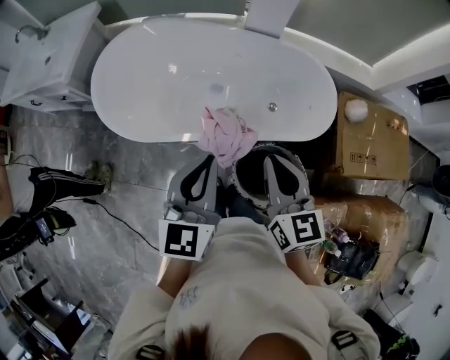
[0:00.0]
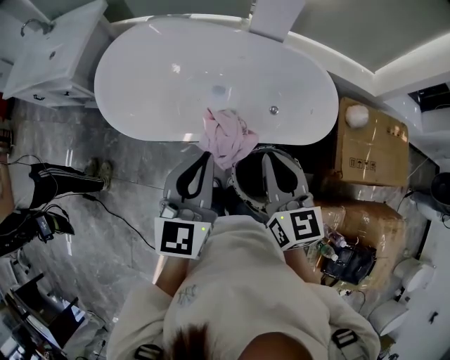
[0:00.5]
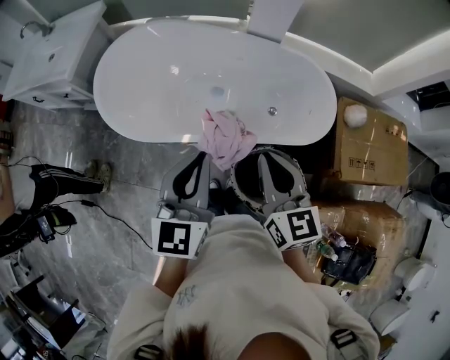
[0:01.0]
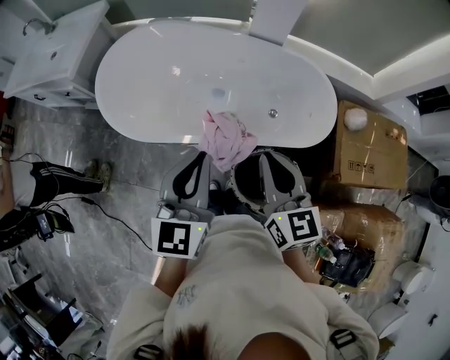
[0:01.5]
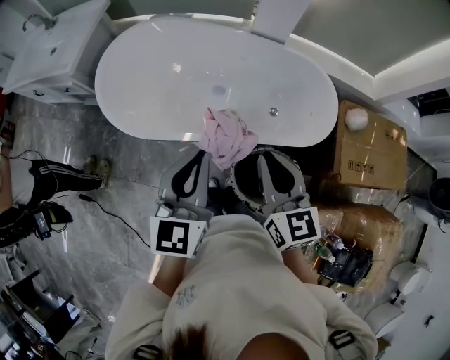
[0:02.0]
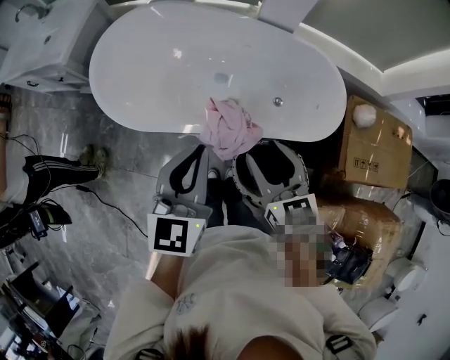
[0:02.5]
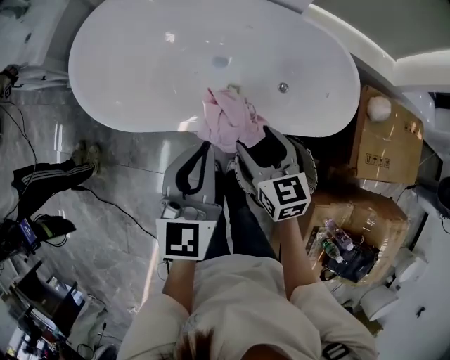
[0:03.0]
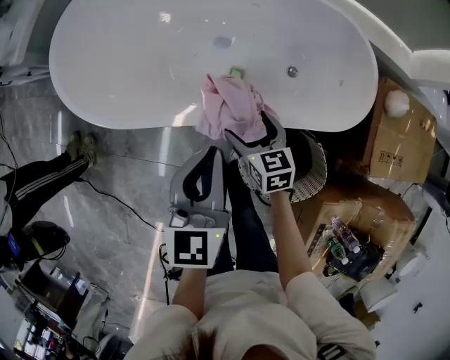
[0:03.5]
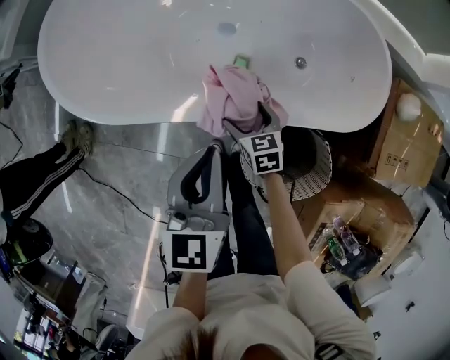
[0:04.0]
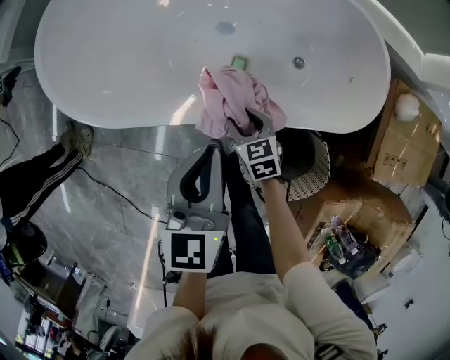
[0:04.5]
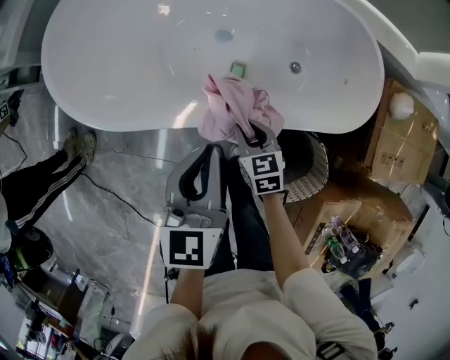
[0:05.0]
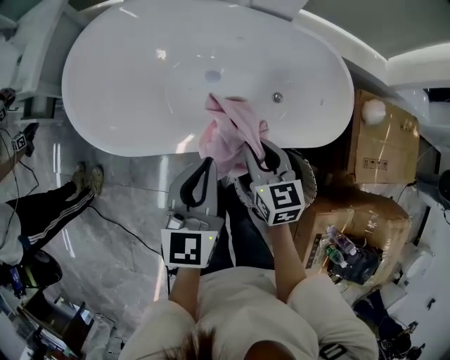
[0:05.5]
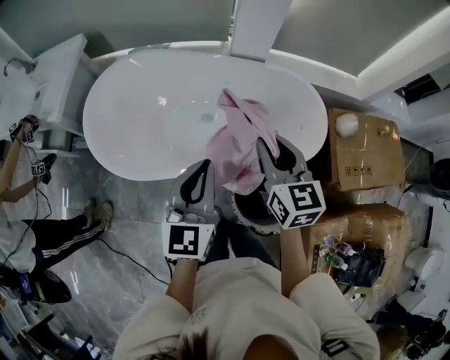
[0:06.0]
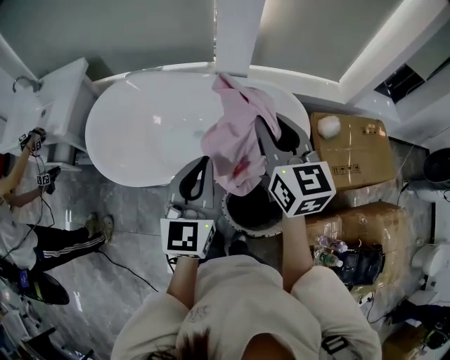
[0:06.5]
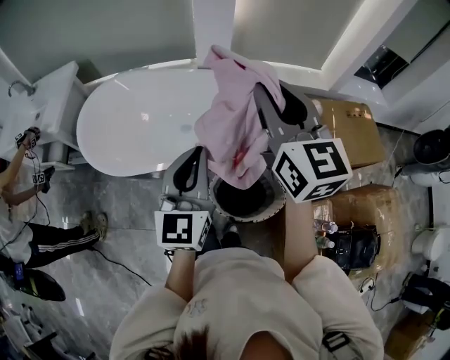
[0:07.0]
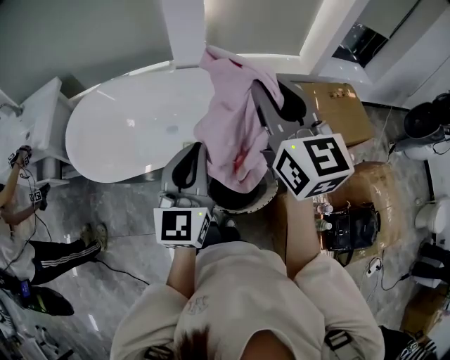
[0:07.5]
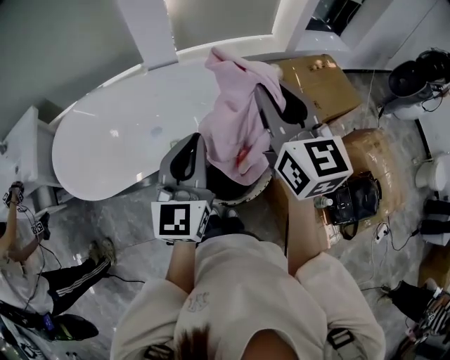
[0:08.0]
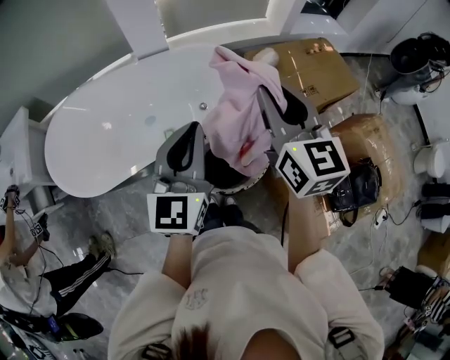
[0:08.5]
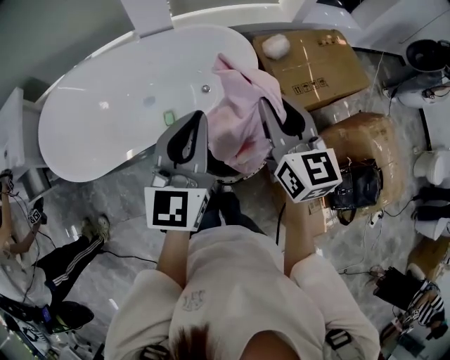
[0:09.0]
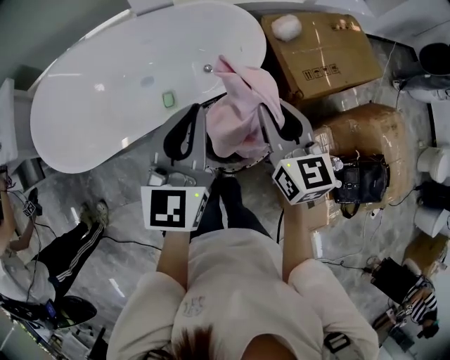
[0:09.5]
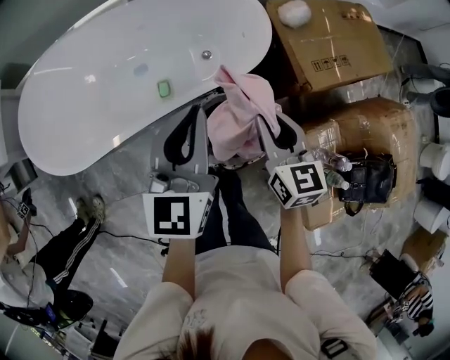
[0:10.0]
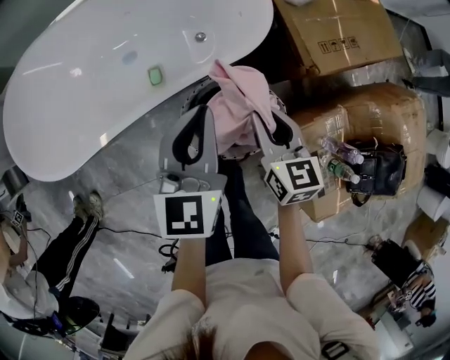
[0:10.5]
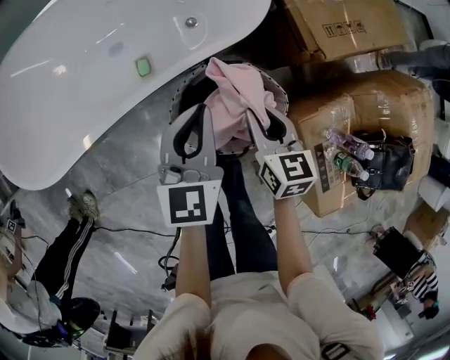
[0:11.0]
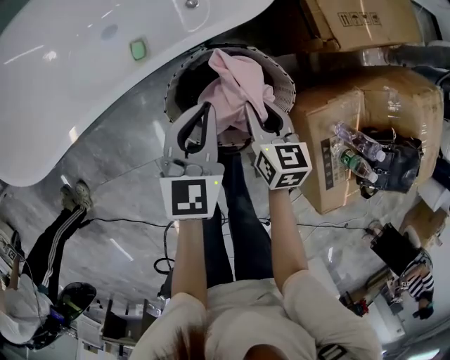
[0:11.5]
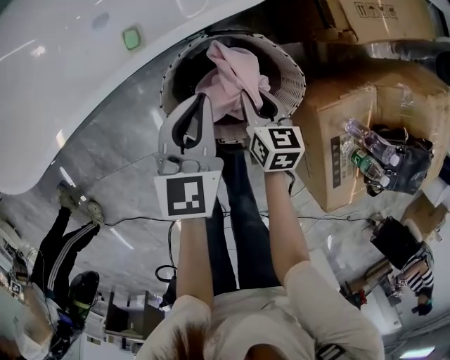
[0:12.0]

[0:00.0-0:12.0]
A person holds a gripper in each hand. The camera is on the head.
0:00.0 to 0:02.0: There are only small adjustments of the grippers.
0:02.0 to 0:04.0: The left gripper travels downward by approximately 25 cm, and turns by some 20 degrees, while the right gripper is displaced downward by roughly 50 cm, points its fingers roughly 40 degrees further downward, and opens up.
0:04.0 to 0:06.0: The left gripper travels upward by some 20 cm, and turns by approximately 20 degrees. The right gripper moves upward, some 50 cm, angles its fingers upward, by about 30 degrees, and closes.
0:06.0 to 0:08.0: The left gripper heads to the right, backward and upward, covering approximately 25 cm, and rotates some 20 degrees. Meanwhile the right gripper travels to the right, upward and backward by roughly 35 cm, and swivels roughly 20 degrees.
0:08.0 to 0:10.0: The left gripper goes approximately 15 cm downward and forward; the right gripper heads downward, covering about 35 cm, and swivels some 20 degrees.
0:10.0 to 0:12.0: The two grippers go roughly 35 cm downward. The right gripper changes its angle by roughly 20 degrees.

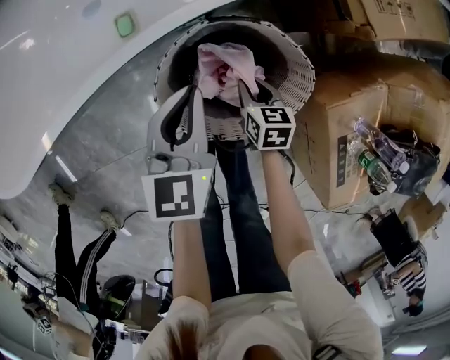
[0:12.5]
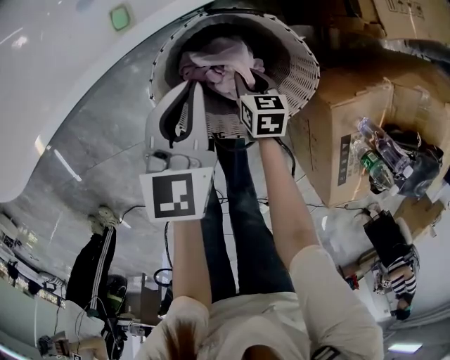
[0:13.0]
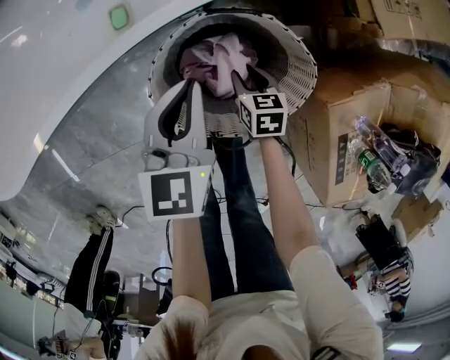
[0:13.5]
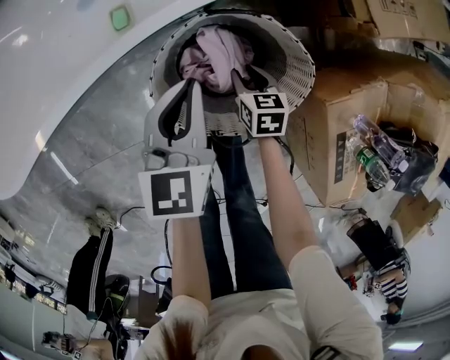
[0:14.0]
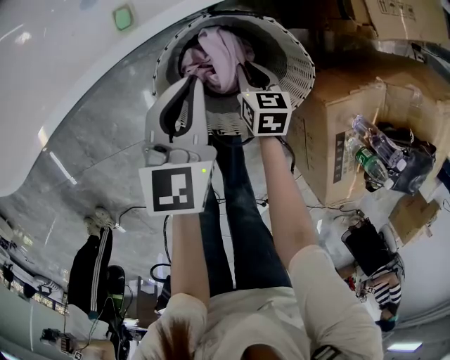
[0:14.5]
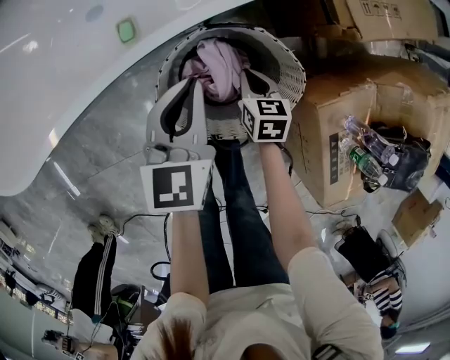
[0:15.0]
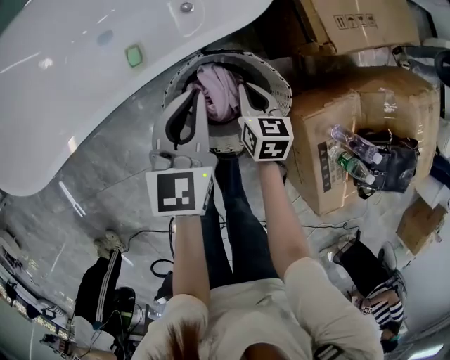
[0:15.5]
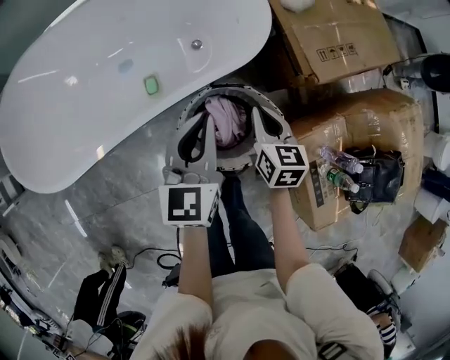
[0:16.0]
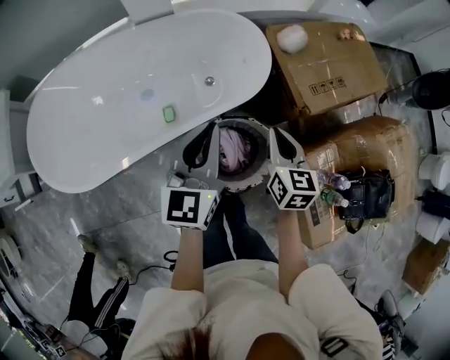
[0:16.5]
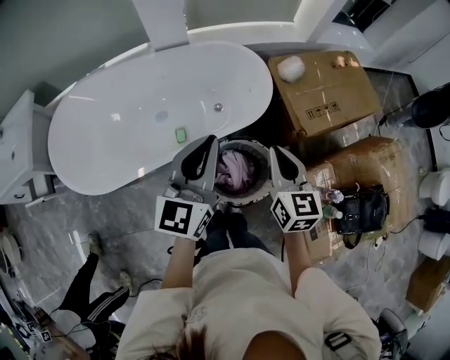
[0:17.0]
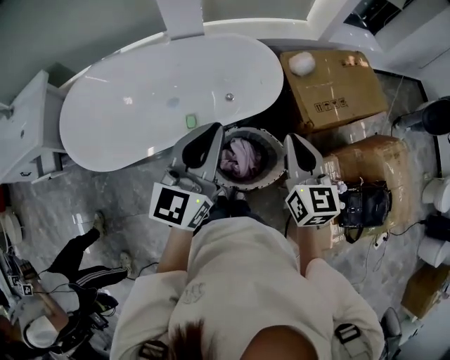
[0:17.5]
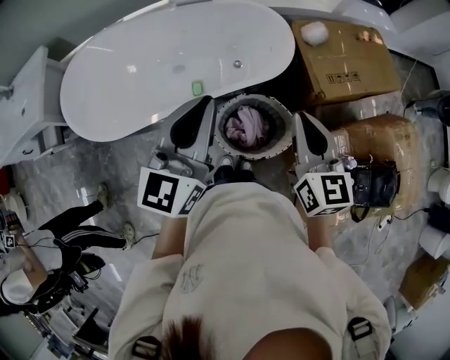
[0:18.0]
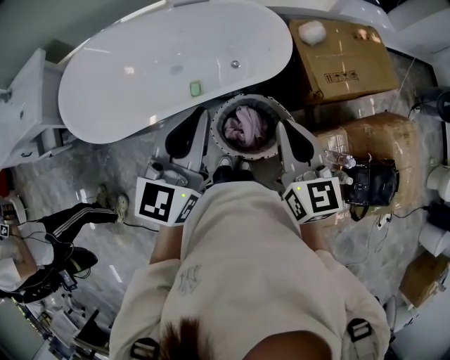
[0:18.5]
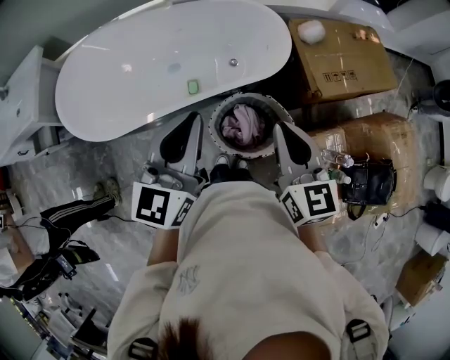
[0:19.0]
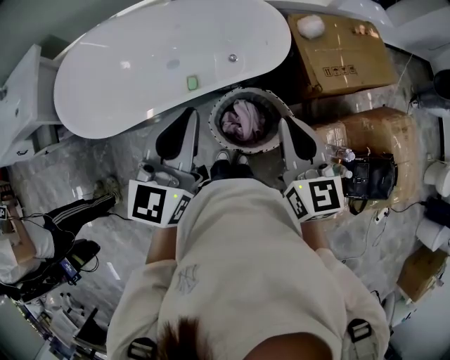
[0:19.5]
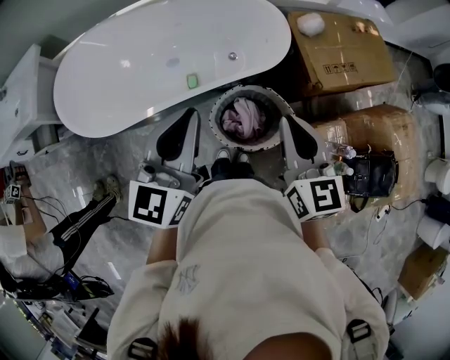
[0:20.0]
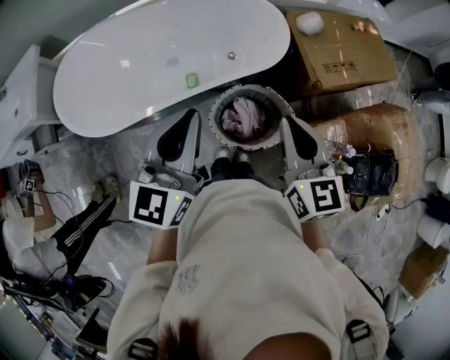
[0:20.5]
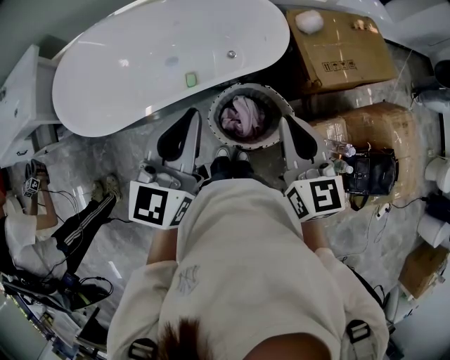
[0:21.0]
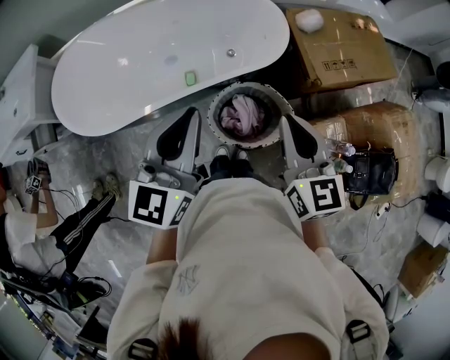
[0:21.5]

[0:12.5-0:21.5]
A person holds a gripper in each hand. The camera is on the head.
0:12.5 to 0:14.5: The grippers stay close to where they were, moving slightly.
0:14.5 to 0:17.0: The two grippers go roughly 50 cm upward. The right gripper angles its fingers upward, by approximately 30 degrees, while the left gripper rotates approximately 30 degrees.
0:17.0 to 0:19.5: The left gripper heads backward and to the left, covering some 15 cm. Meanwhile the right gripper travels backward and upward by about 10 cm.
0:19.5 to 0:21.5: The grippers move only a little.

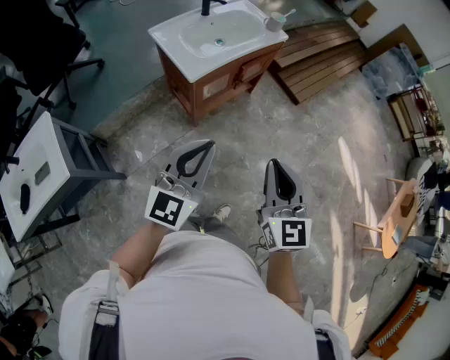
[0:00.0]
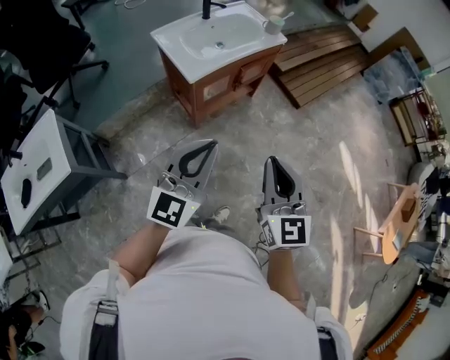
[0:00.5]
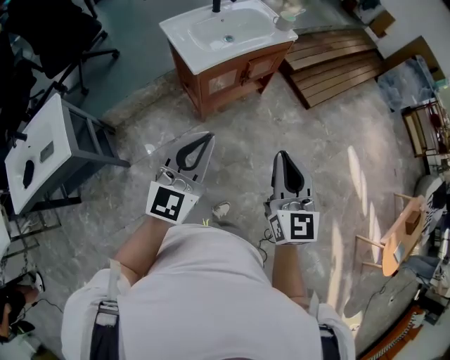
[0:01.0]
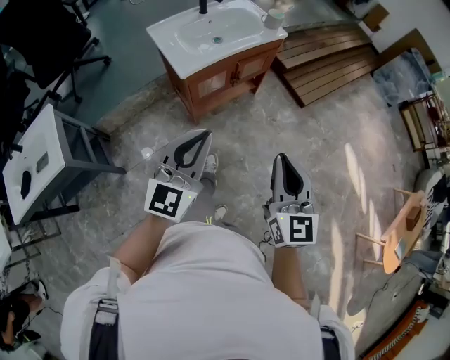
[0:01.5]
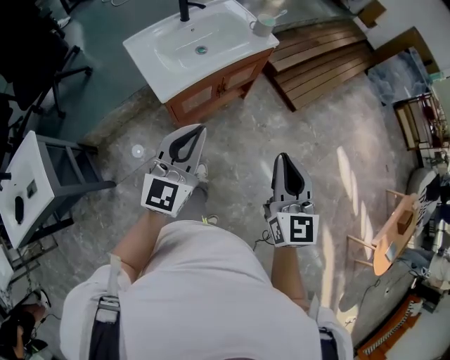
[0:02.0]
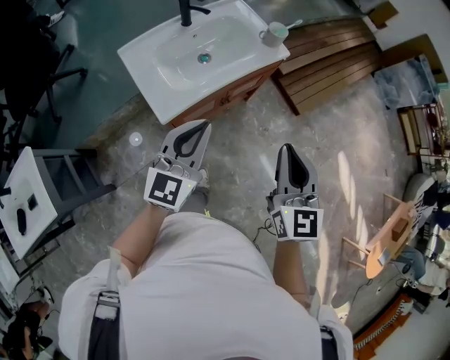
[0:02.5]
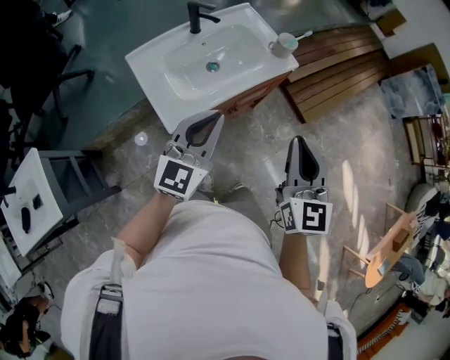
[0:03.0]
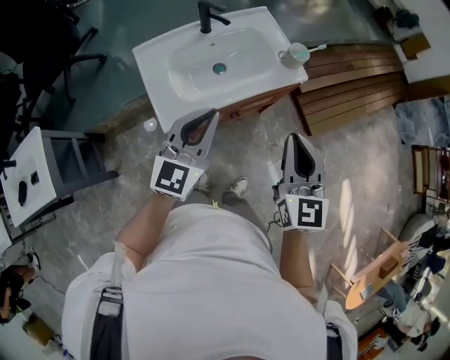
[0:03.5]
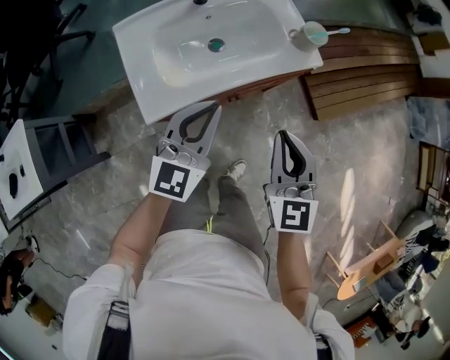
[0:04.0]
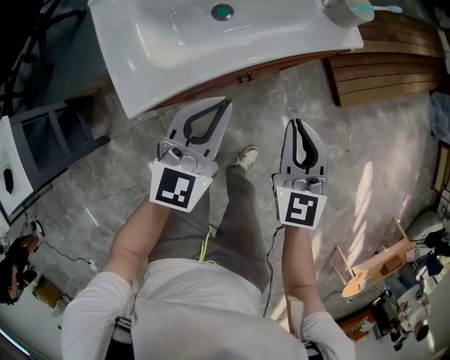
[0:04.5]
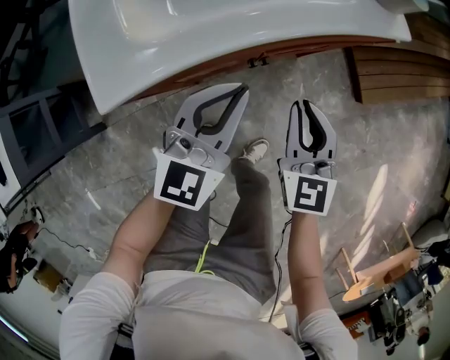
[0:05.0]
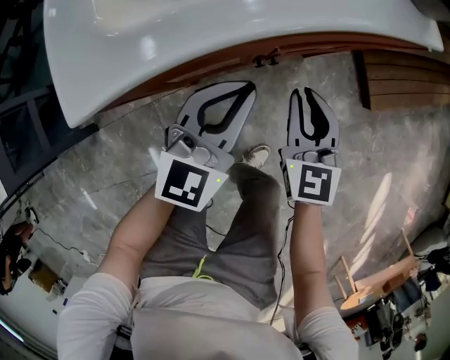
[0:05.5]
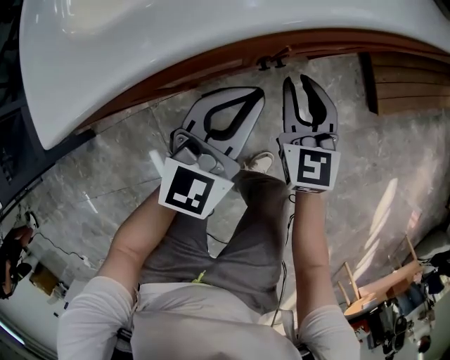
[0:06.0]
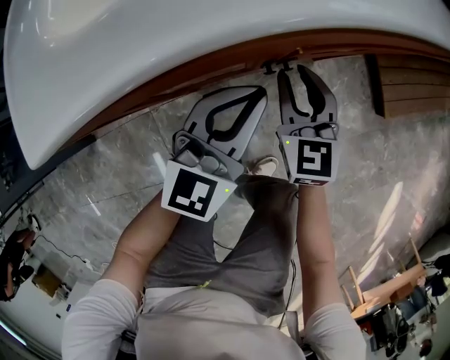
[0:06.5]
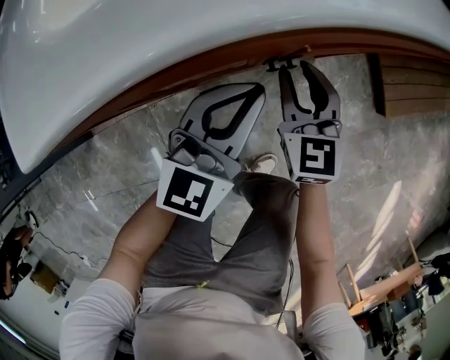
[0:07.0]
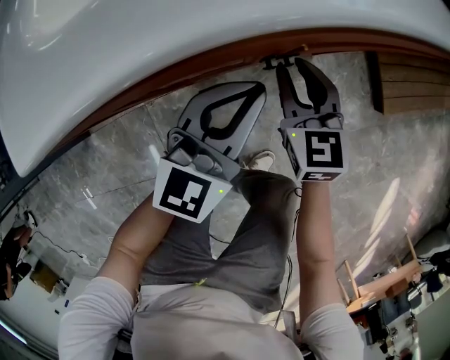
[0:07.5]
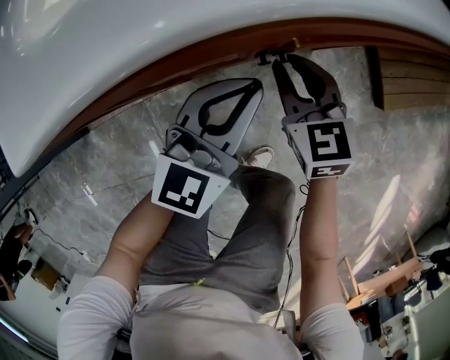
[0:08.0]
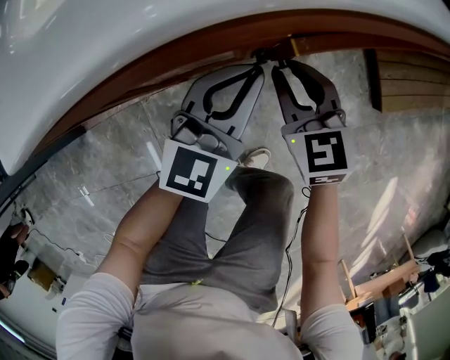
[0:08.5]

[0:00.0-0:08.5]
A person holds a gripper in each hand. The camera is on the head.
0:00.0 to 0:02.0: Both grippers travel together forward and to the right, about 25 cm.
0:02.0 to 0:04.0: The grippers both shift forward by about 35 cm.
0:04.0 to 0:06.5: Both grippers move downward, about 50 cm. The right gripper opens up.
0:06.5 to 0:08.5: The grippers make only small movements.
